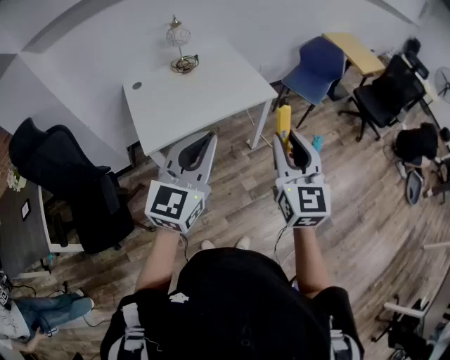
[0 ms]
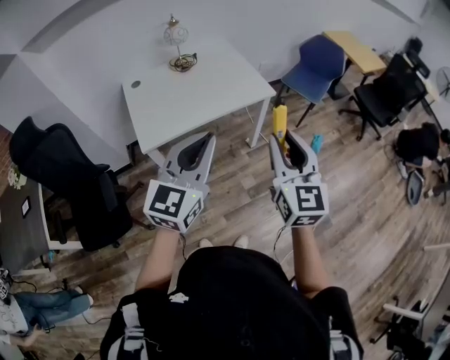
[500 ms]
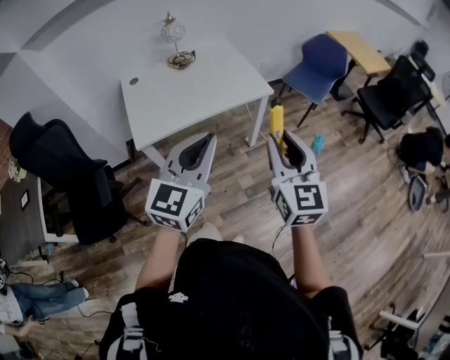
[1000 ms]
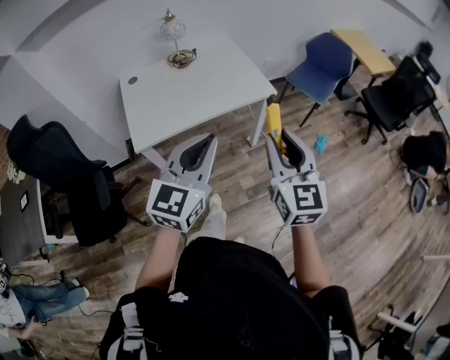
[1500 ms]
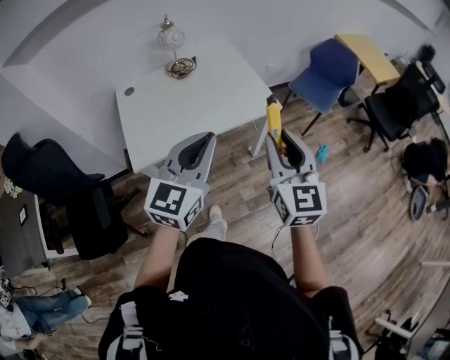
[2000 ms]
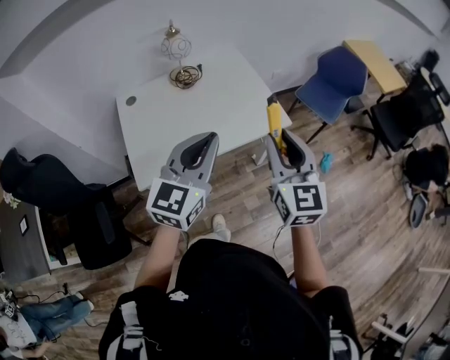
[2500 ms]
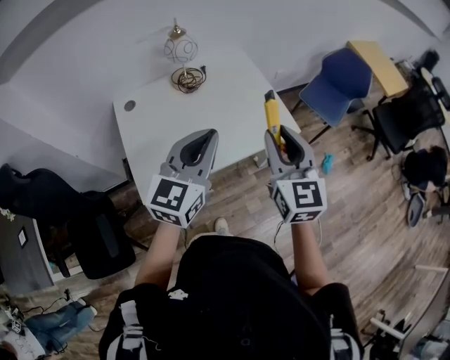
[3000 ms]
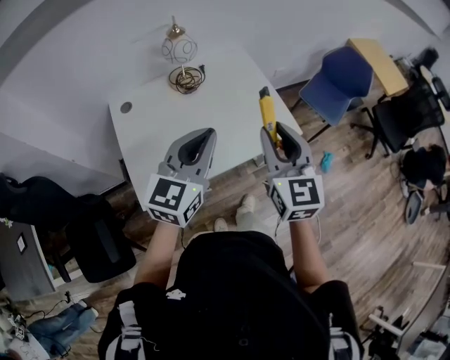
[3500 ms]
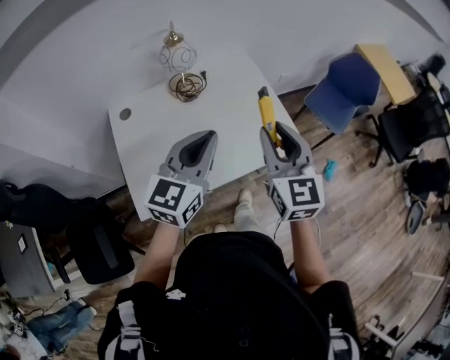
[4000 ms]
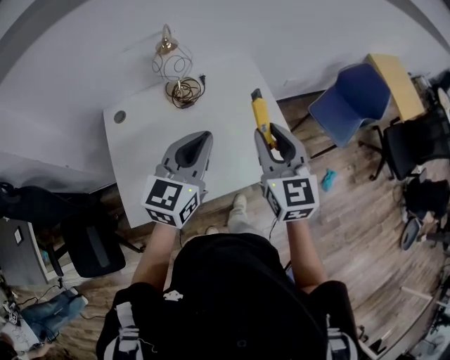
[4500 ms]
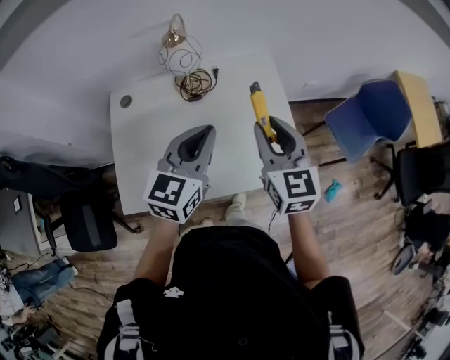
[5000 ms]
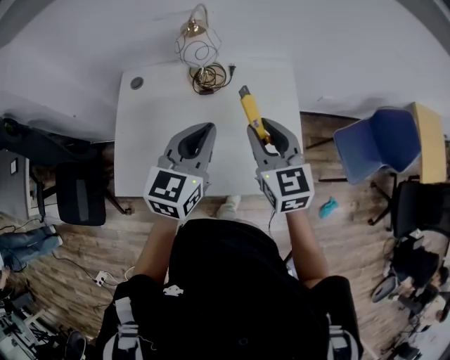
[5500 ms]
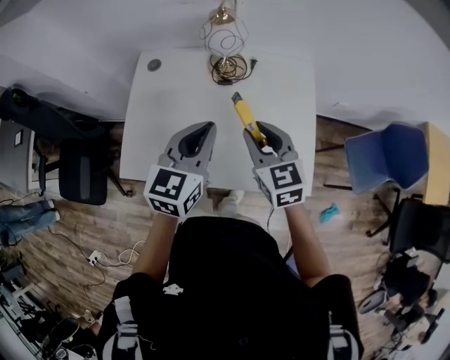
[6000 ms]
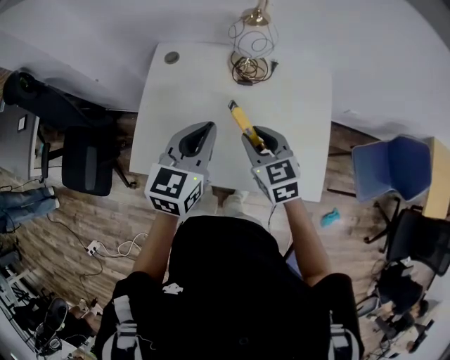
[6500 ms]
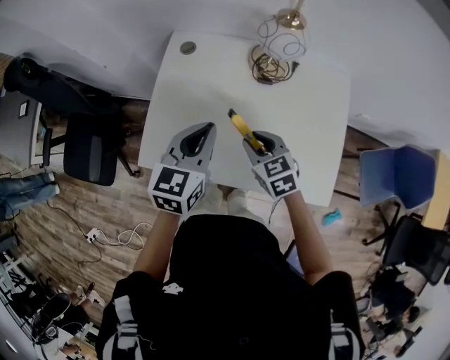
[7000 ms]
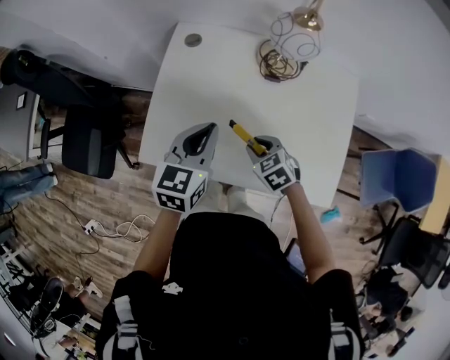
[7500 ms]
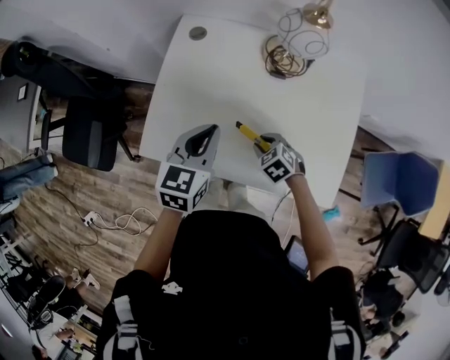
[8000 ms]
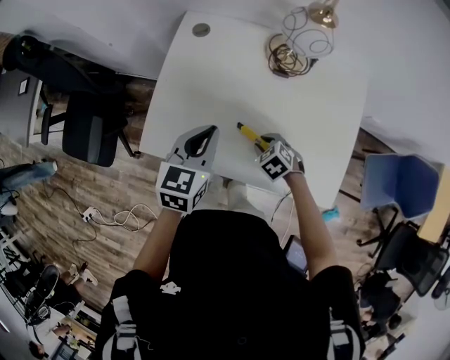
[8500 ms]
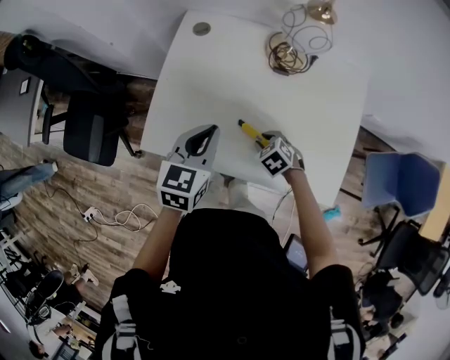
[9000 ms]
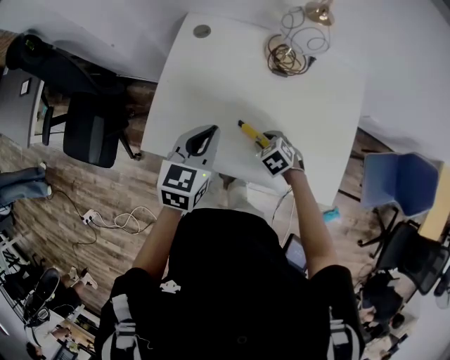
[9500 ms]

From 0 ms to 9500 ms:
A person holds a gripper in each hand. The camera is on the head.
From 0 ms to 2000 ms: Both grippers travel together forward, some 15 cm.
From 2000 ms to 4000 ms: Both grippers travel together forward and to the left, about 30 cm.
From 4000 ms to 5500 ms: The left gripper moves roughly 15 cm, and turns by approximately 30 degrees, while the right gripper shifts by roughly 20 cm, and changes its angle by about 30 degrees.
From 5500 ms to 7500 ms: The right gripper moves downward and to the left, approximately 30 cm, and points its fingers roughly 40 degrees further downward, while the left gripper goes some 20 cm to the left and downward, and turns by some 20 degrees.
From 7500 ms to 9500 ms: The right gripper goes some 5 cm downward.

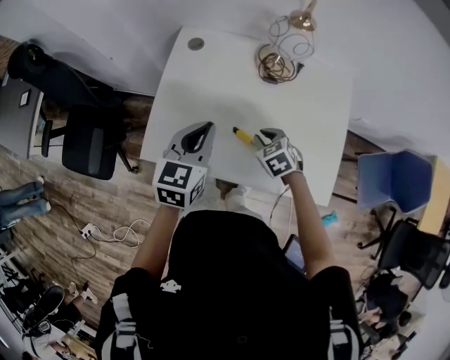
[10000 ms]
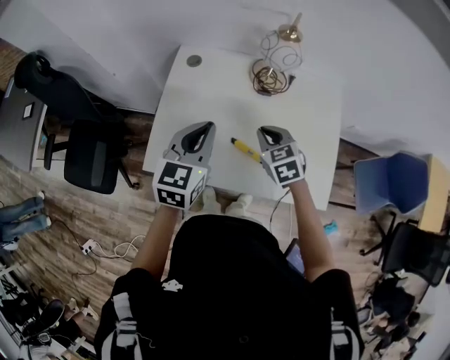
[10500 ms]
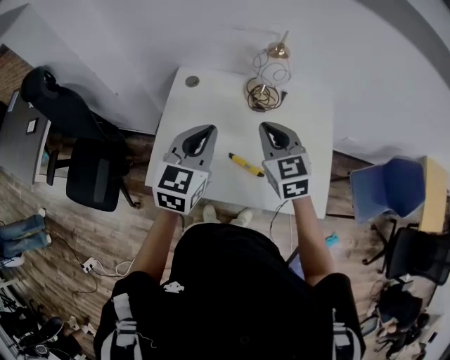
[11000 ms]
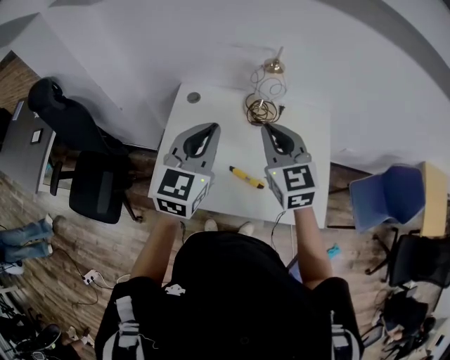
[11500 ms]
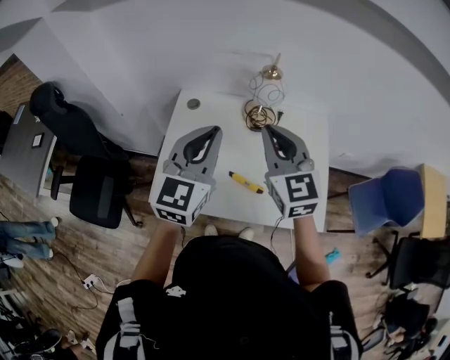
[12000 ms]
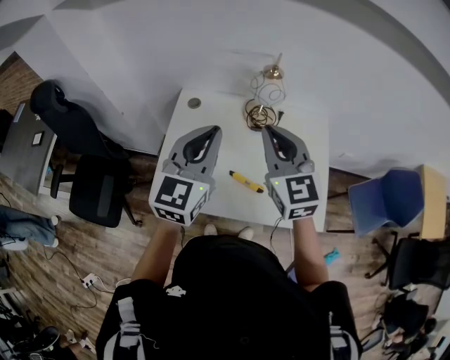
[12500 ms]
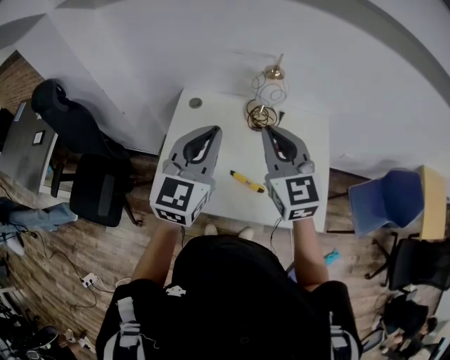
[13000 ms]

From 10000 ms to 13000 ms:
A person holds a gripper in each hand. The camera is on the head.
From 10000 ms to 11500 ms: The right gripper heads upward, covering approximately 30 cm, and tips its fingers upward by roughly 40 degrees. Meanwhile the left gripper shifts roughly 15 cm upward, and rotates approximately 20 degrees.
From 11500 ms to 13000 ms: The right gripper ends up about 5 cm from where it was.

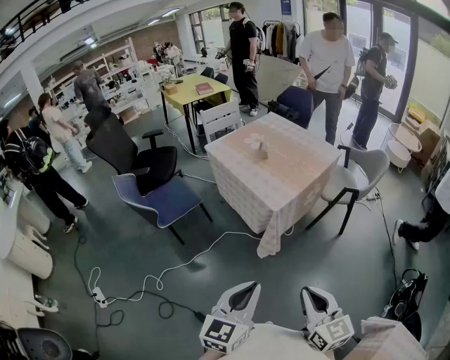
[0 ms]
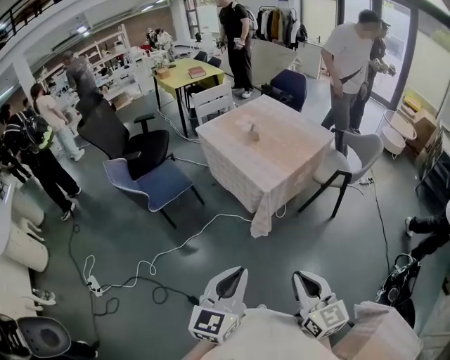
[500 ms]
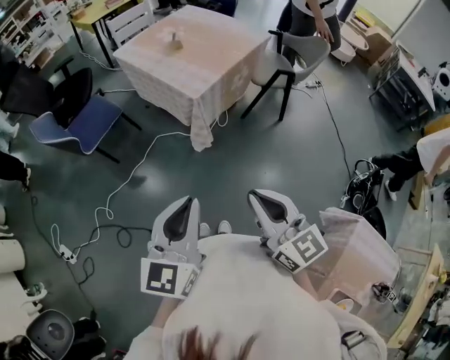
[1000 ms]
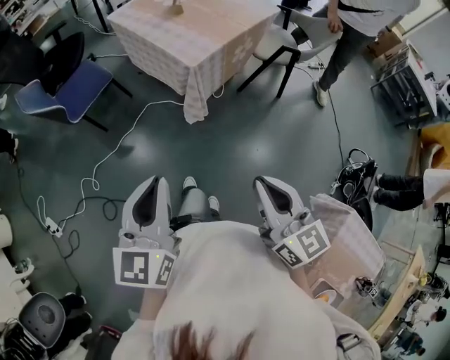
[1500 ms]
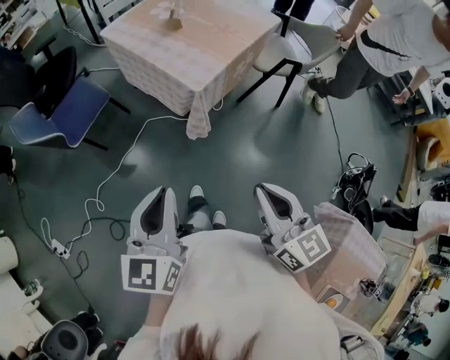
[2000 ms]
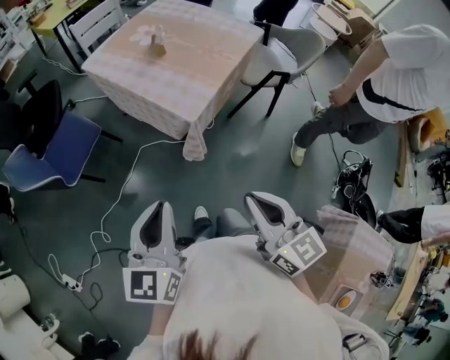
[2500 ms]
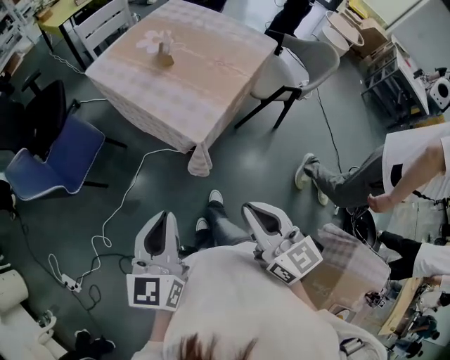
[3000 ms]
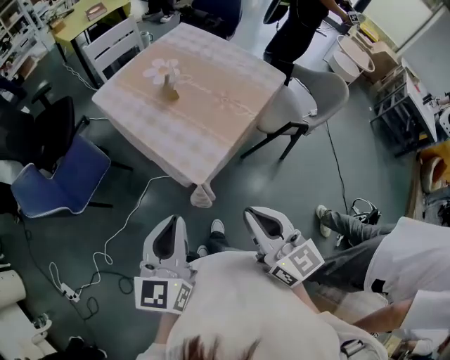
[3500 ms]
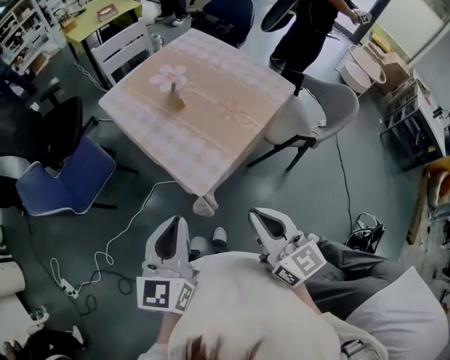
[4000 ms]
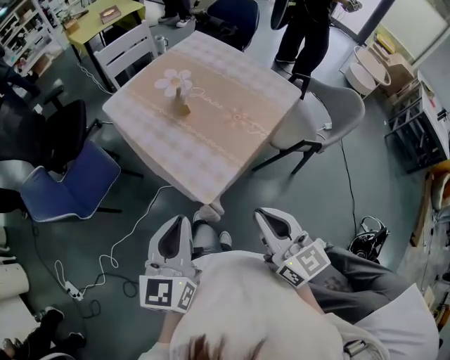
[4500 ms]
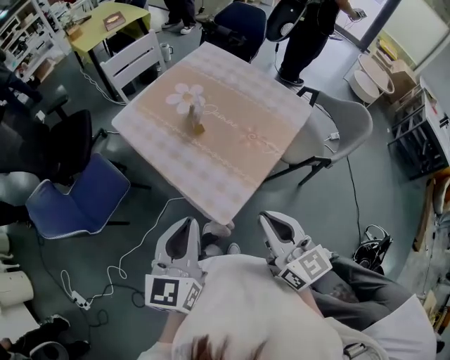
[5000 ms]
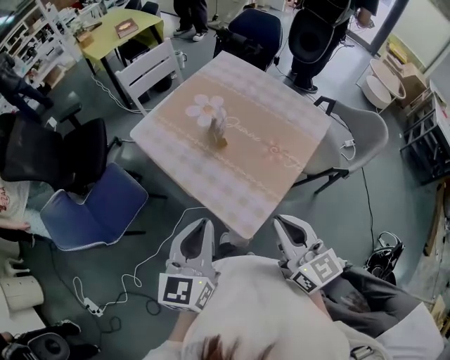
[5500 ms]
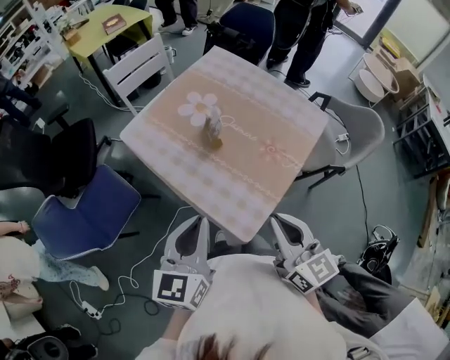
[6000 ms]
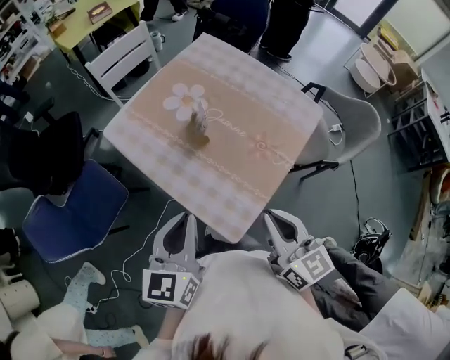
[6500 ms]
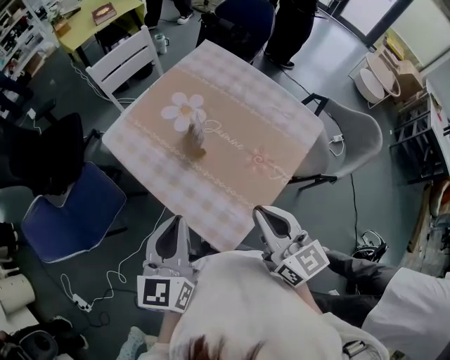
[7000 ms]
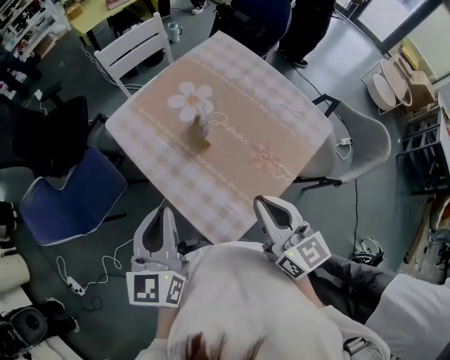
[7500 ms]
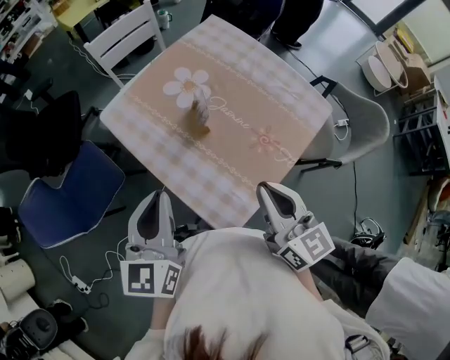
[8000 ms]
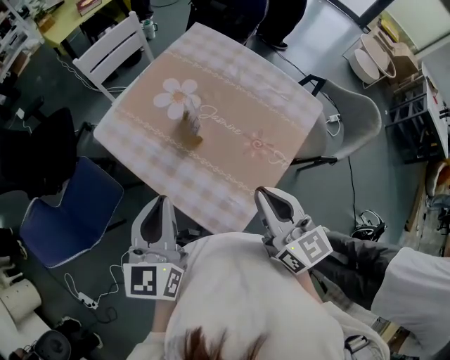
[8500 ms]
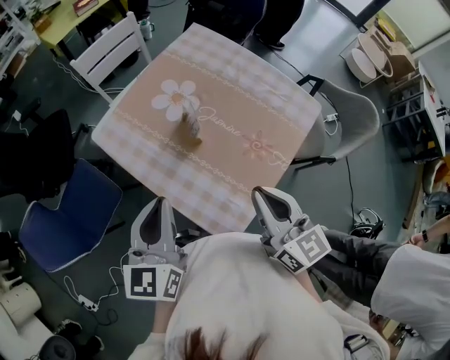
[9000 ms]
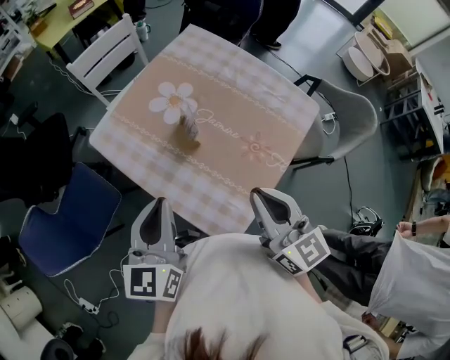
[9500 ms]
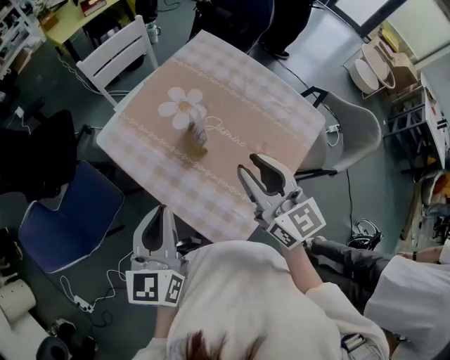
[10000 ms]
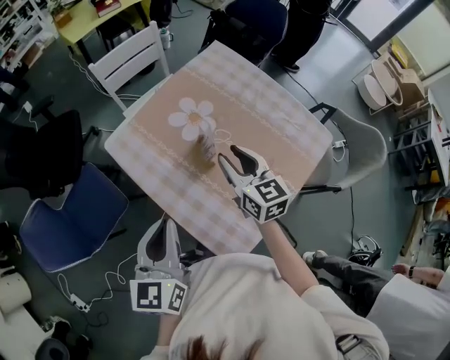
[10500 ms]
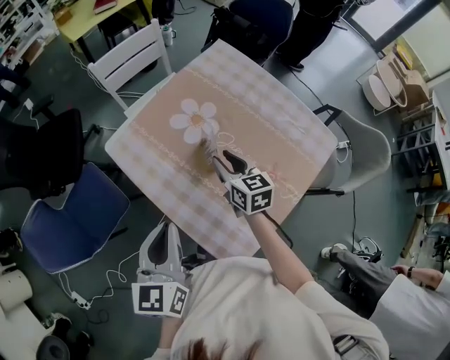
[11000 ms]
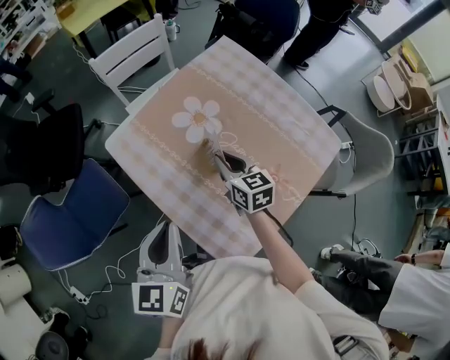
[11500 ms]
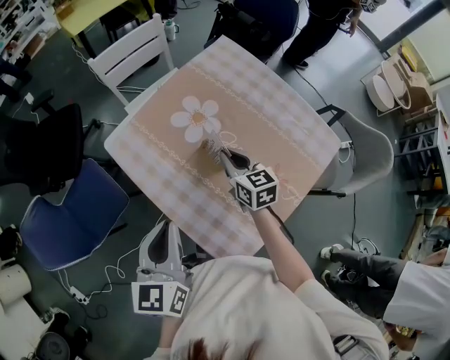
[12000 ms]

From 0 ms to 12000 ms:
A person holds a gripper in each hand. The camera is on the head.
From 0 ms to 2000 ms: Both grippers move forward, approximately 5 cm.
From 2000 ms to 4000 ms: The grippers both shift forward by some 30 cm.
From 4000 ms to 6000 ms: The grippers both shift forward by approximately 15 cm.
From 6000 ms to 8000 ms: Both grippers travel together forward, about 10 cm.
From 8000 ms to 10000 ms: The right gripper moves forward, some 10 cm, and opens its fingers.
From 10000 ms to 12000 ms: The right gripper is displaced downward and forward by roughly 25 cm, rotates some 20 degrees, and closes its fingers.

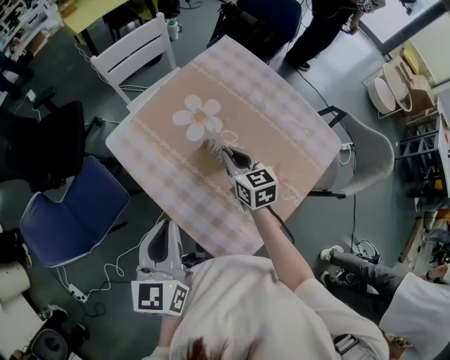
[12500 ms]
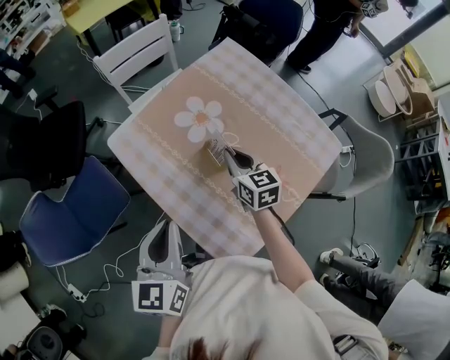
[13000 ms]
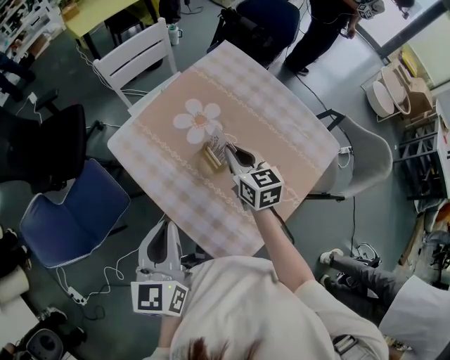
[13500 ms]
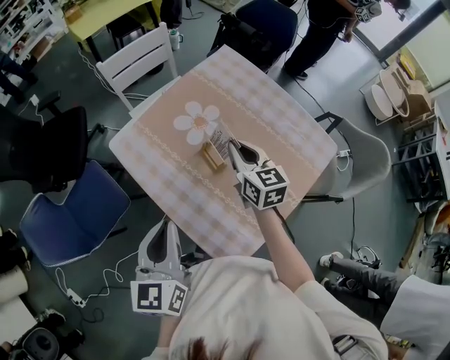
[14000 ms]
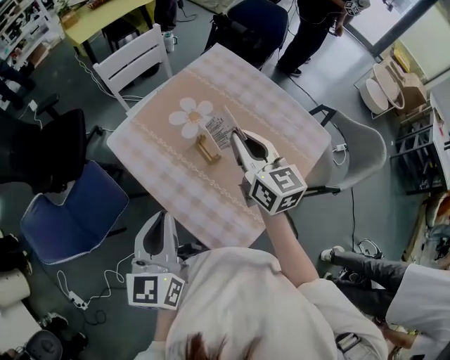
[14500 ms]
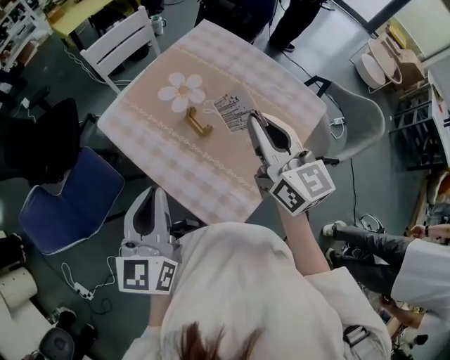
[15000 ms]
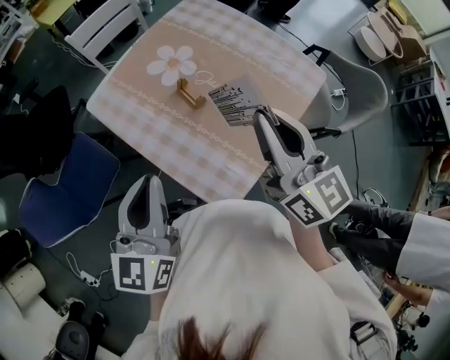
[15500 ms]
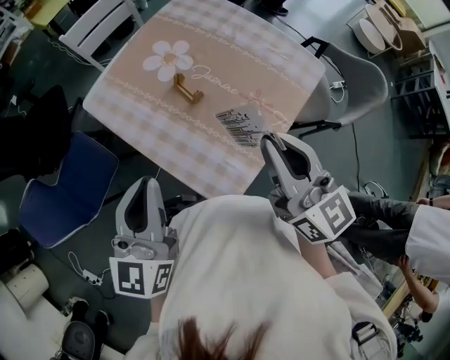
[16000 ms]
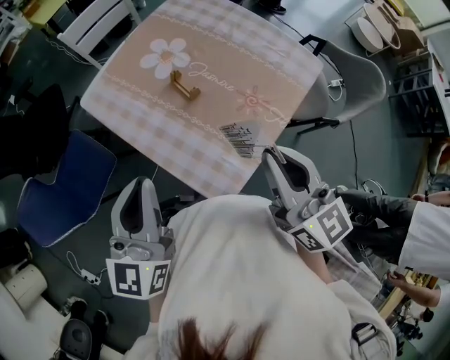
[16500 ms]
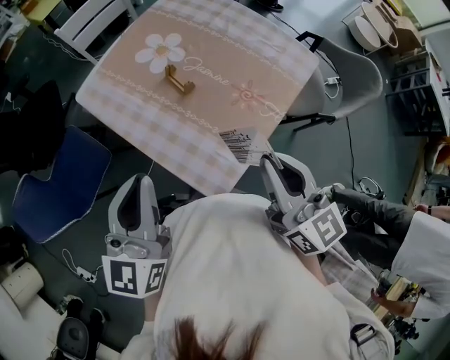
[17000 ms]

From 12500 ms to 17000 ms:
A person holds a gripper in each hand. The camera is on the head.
From 12500 ms to 14500 ms: The right gripper goes approximately 15 cm upward, and swivels roughly 20 degrees.
From 14500 ms to 17000 ms: The left gripper travels backward by approximately 5 cm. The right gripper travels backward by approximately 25 cm.
